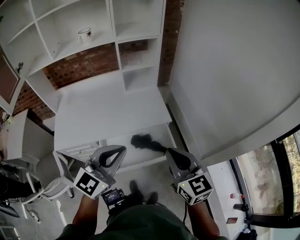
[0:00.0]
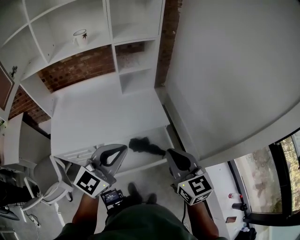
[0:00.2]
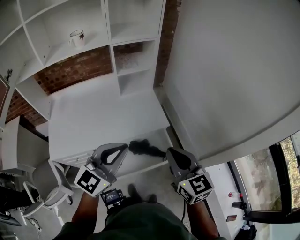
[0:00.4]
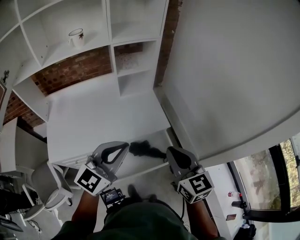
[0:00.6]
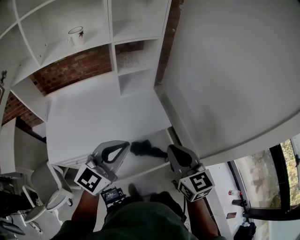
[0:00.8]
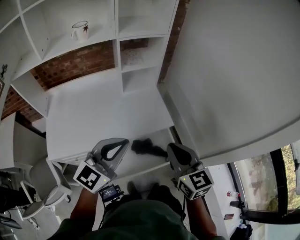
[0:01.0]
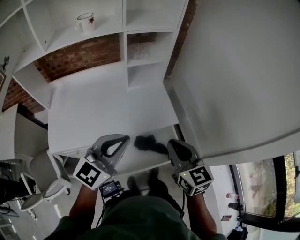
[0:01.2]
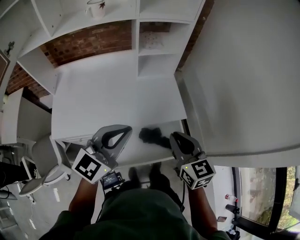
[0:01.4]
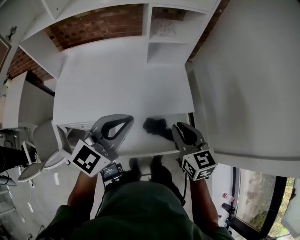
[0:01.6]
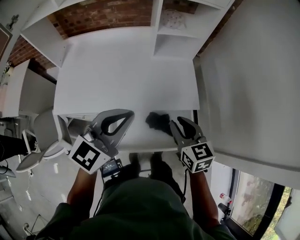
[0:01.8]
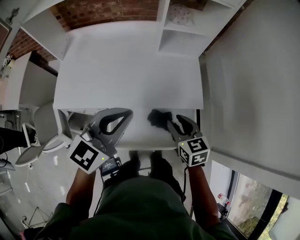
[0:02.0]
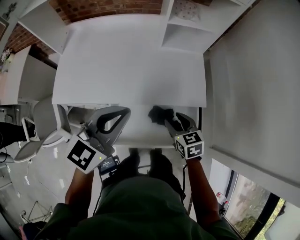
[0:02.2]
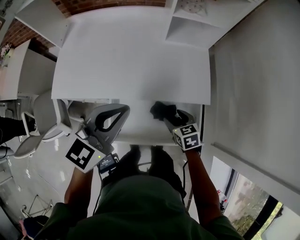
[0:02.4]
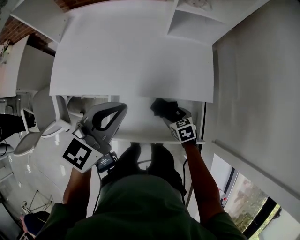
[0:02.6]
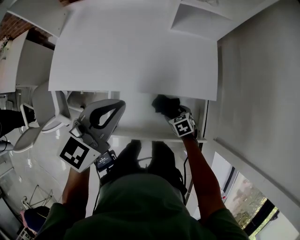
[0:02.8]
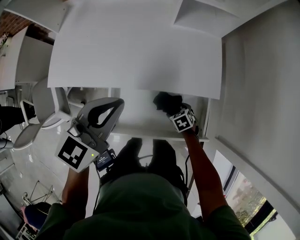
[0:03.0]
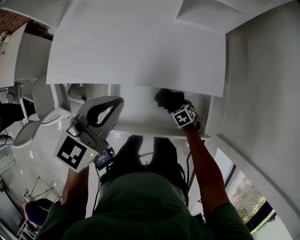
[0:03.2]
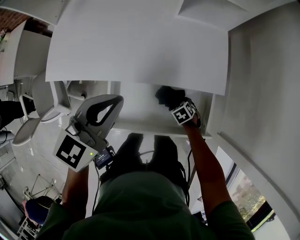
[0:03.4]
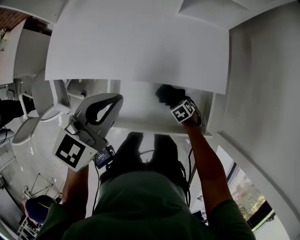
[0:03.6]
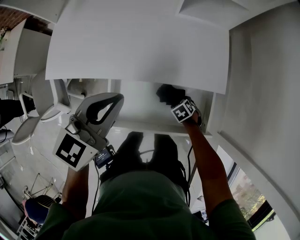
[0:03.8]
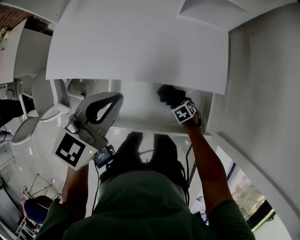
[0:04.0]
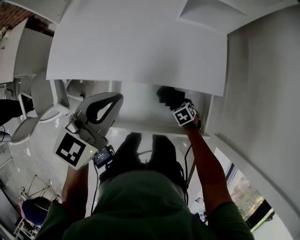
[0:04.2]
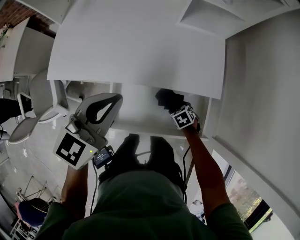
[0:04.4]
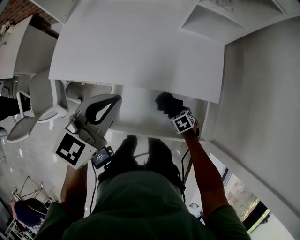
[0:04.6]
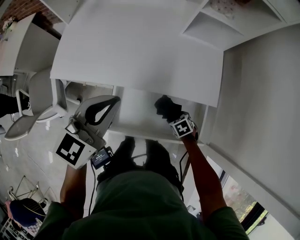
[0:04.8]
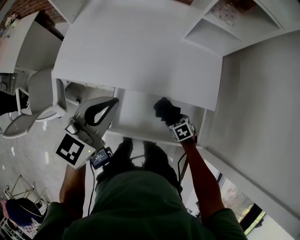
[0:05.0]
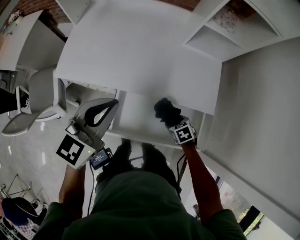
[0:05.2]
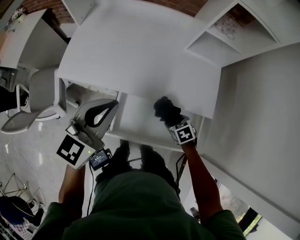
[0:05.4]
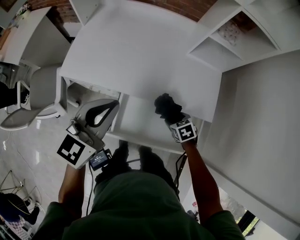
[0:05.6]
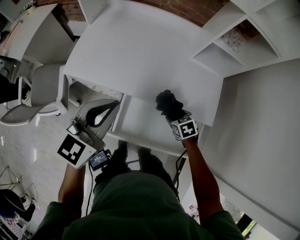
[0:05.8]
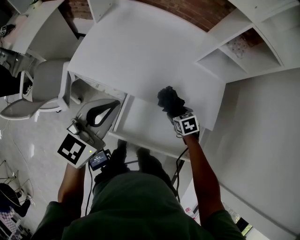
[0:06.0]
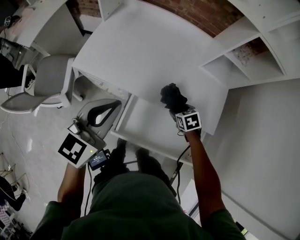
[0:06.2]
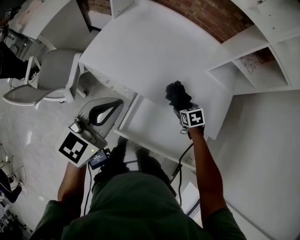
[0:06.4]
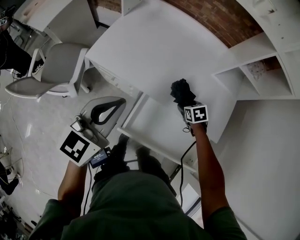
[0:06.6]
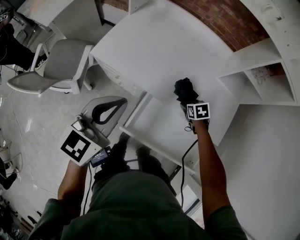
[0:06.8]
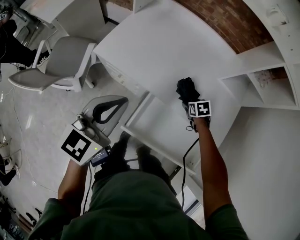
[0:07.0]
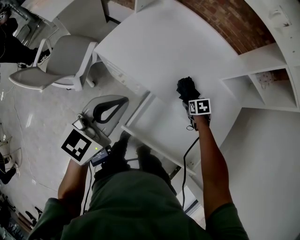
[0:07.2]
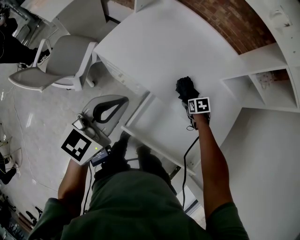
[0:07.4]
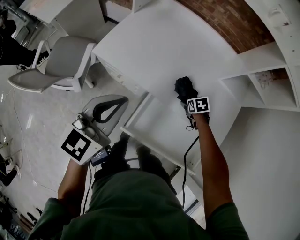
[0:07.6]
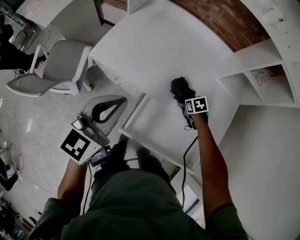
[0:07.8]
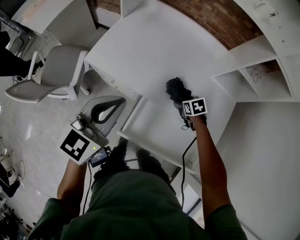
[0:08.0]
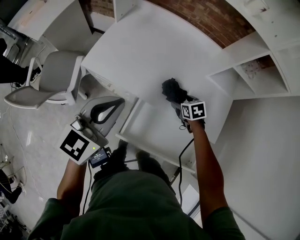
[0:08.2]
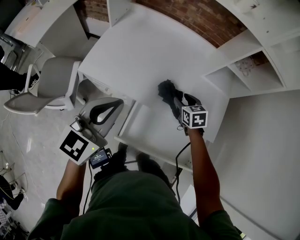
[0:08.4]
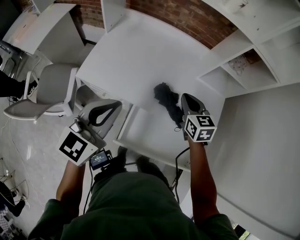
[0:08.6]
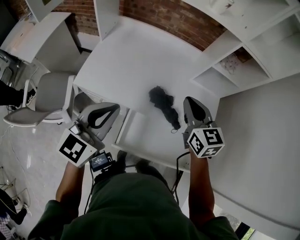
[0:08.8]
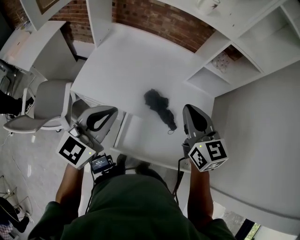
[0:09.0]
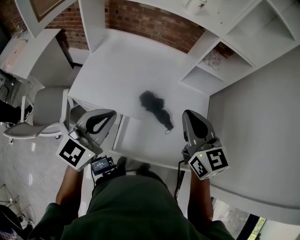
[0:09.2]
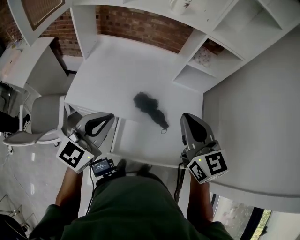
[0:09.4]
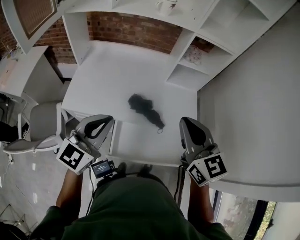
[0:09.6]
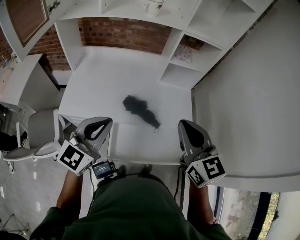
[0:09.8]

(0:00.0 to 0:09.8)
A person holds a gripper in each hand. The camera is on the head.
0:00.0 - 0:01.4: The left gripper is displaced forward and to the left by roughly 15 cm, while the right gripper moves forward, to the left and downward, approximately 20 cm.
0:01.4 - 0:02.8: The right gripper shifts about 40 cm downward, tips its fingers downward by about 50 degrees, and opens up, while the left gripper shifts some 15 cm downward, forward and to the left, and swivels some 20 degrees.
0:02.8 - 0:04.2: The right gripper travels downward by some 5 cm.
0:04.2 - 0:05.6: The left gripper ends up approximately 15 cm from where it was, while the right gripper travels upward by about 15 cm.
0:05.6 - 0:07.0: The right gripper moves forward and to the left, about 15 cm. Meanwhile the left gripper shifts some 10 cm to the left.
0:07.0 - 0:08.4: The right gripper goes some 10 cm upward, and rotates some 20 degrees; the left gripper ends up about 5 cm from where it was.
0:08.4 - 0:09.8: The right gripper heads upward and backward, covering approximately 40 cm, angles its fingers upward, by roughly 40 degrees, and closes its fingers. Meanwhile the left gripper travels to the right, upward and backward by some 15 cm.

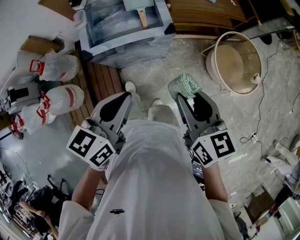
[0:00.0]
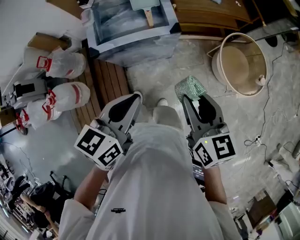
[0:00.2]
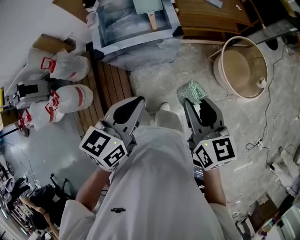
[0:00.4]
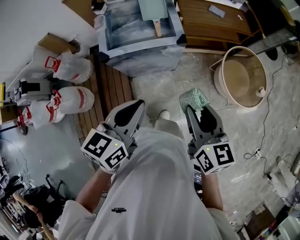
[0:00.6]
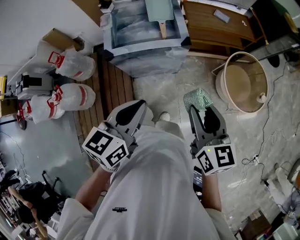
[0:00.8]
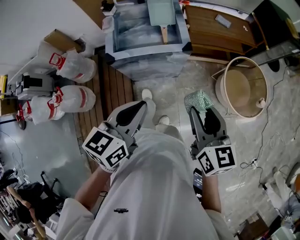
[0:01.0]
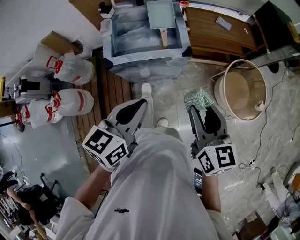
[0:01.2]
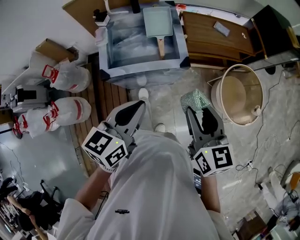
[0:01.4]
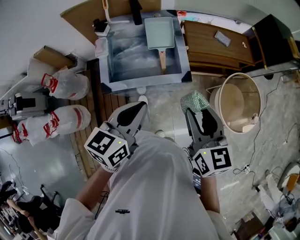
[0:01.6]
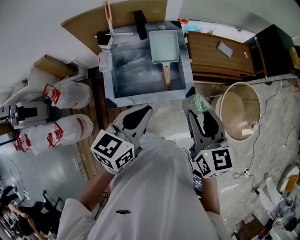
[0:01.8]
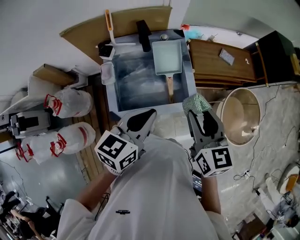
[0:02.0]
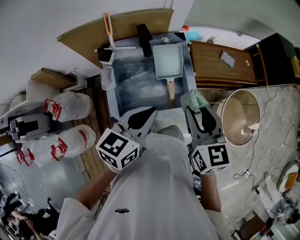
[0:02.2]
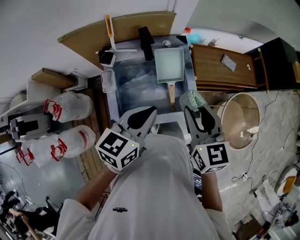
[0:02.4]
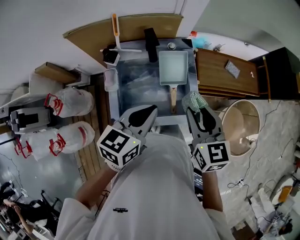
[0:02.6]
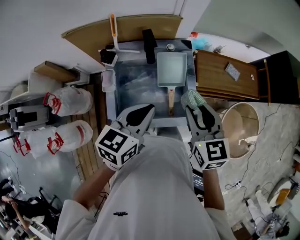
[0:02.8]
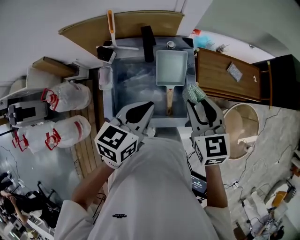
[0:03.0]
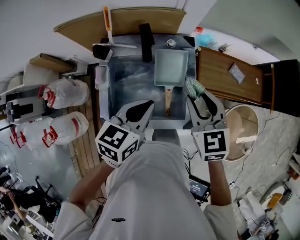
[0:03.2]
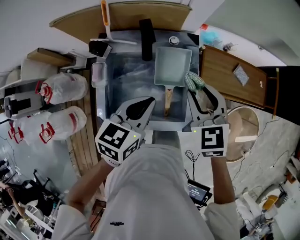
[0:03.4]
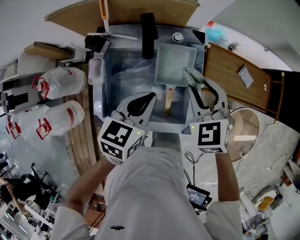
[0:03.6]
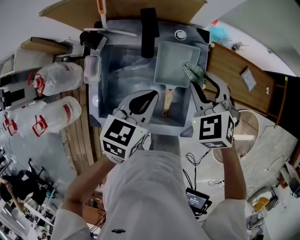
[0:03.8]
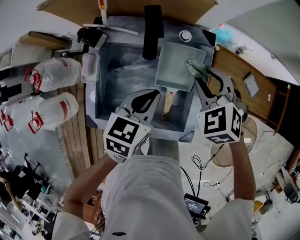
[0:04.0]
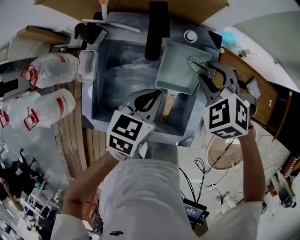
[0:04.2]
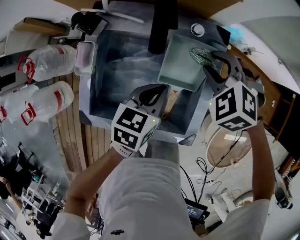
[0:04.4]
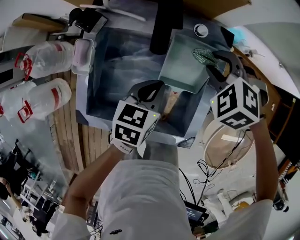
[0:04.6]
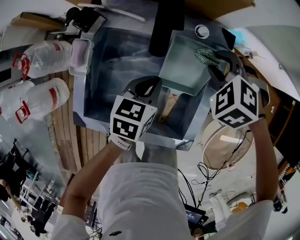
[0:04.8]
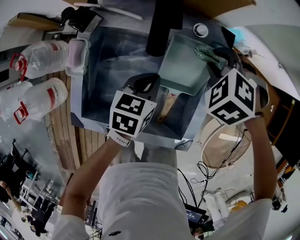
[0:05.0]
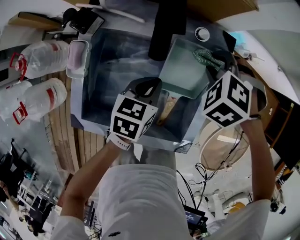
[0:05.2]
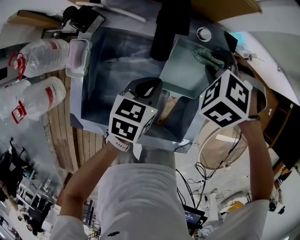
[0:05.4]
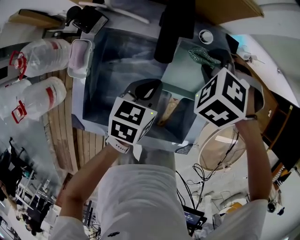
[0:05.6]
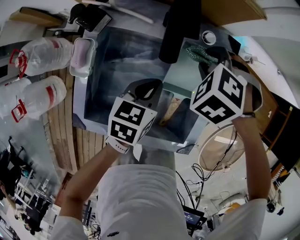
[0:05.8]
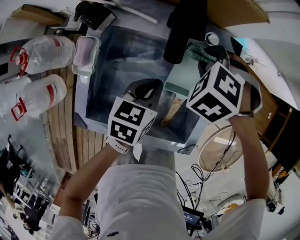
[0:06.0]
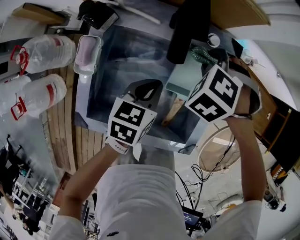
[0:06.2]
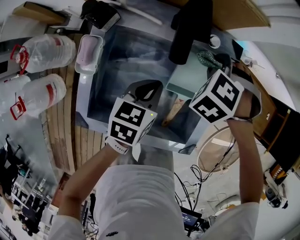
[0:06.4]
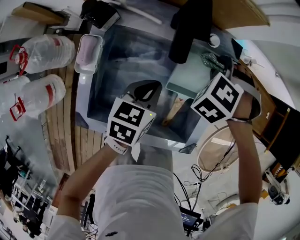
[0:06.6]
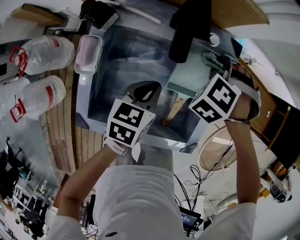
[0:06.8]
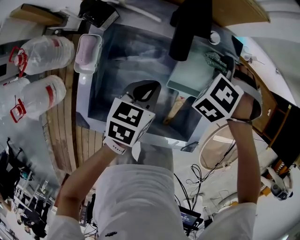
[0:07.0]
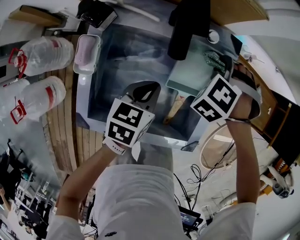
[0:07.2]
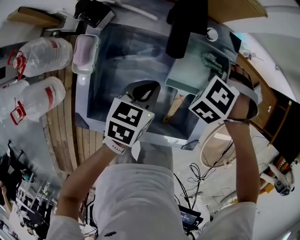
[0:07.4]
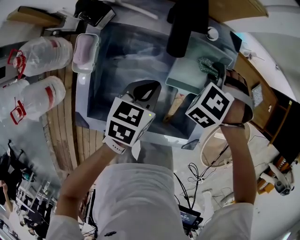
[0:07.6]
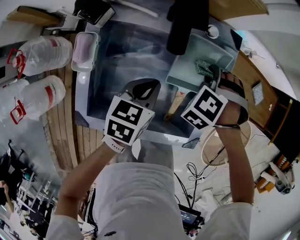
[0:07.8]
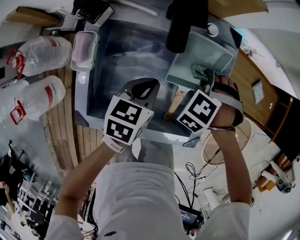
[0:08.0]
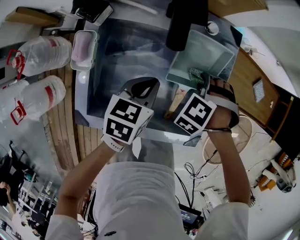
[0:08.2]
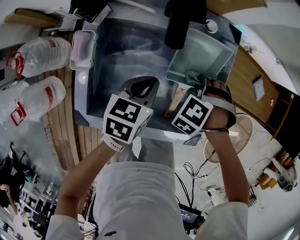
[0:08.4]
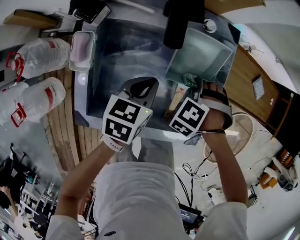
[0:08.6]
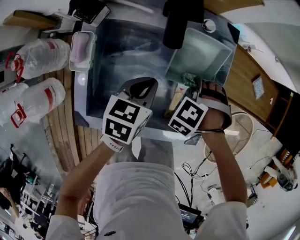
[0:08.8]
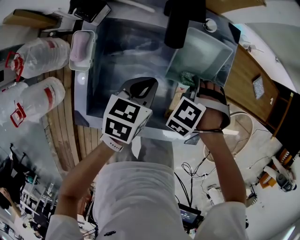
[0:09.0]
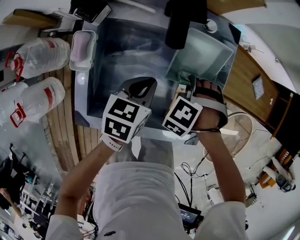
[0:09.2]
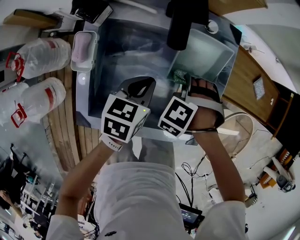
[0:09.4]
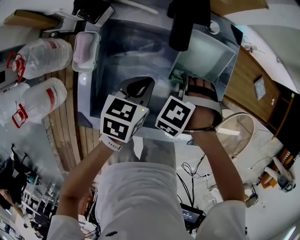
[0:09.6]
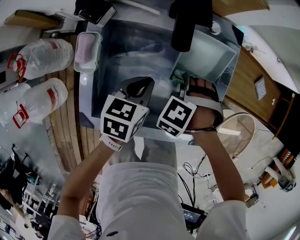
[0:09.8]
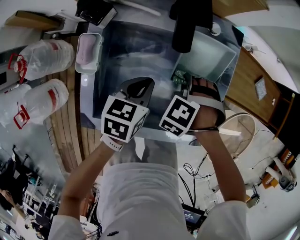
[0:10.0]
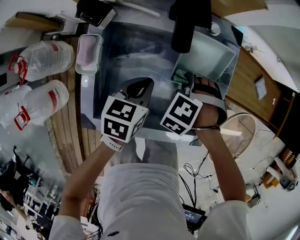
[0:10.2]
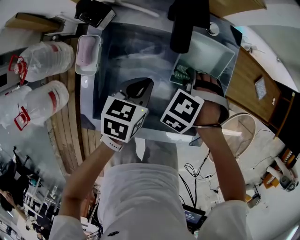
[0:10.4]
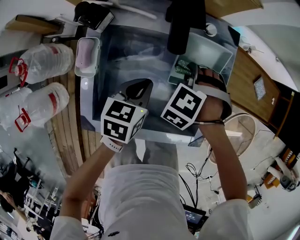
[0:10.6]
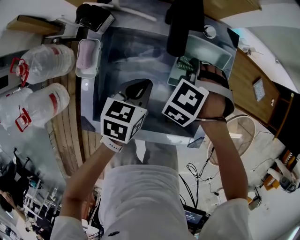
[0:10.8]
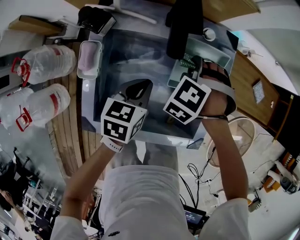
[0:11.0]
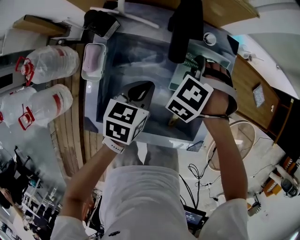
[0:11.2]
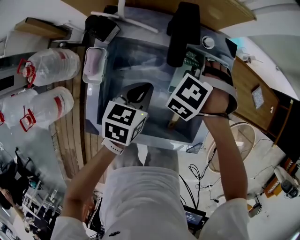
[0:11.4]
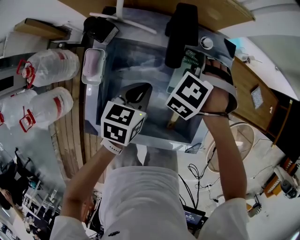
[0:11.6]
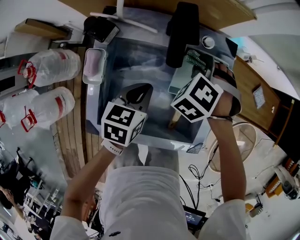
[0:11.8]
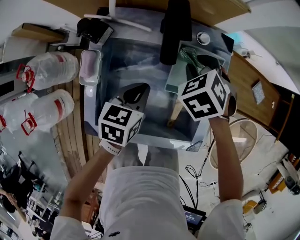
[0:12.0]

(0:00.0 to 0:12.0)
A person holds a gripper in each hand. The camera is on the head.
0:00.0 - 0:01.6: The left gripper travels forward and to the left by roughly 15 cm, while the right gripper travels forward by about 15 cm.
0:01.6 - 0:03.0: Both grippers travel together forward, roughly 25 cm.
0:03.0 - 0:04.4: The grippers both shift downward and forward by about 25 cm. The right gripper rotates around the line of its fingers by some 60 degrees, counterclockwise from behind.
0:04.4 - 0:06.0: The left gripper shifts by roughly 5 cm, while the right gripper moves some 10 cm.
0:06.0 - 0:07.6: The right gripper shifts by roughly 10 cm.
0:07.6 - 0:09.0: The right gripper is displaced backward by about 10 cm.
0:09.0 - 0:10.4: The right gripper goes about 5 cm to the left.
0:10.4 - 0:12.0: The right gripper ends up roughly 10 cm from where it was, and rotates roughly 40 degrees.

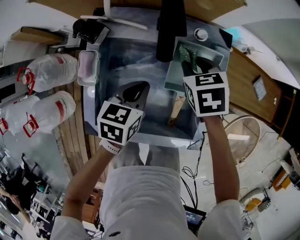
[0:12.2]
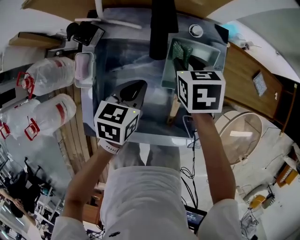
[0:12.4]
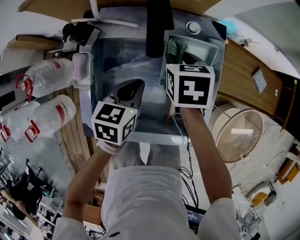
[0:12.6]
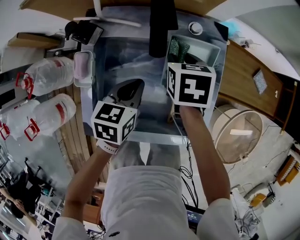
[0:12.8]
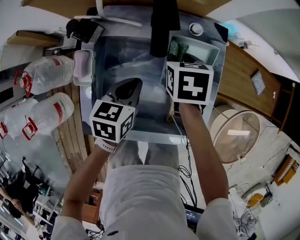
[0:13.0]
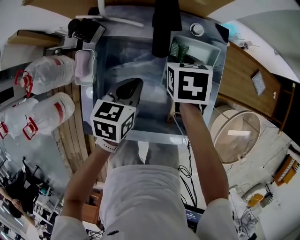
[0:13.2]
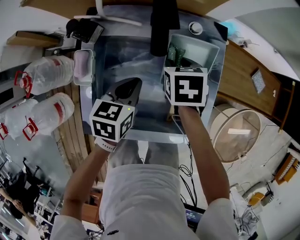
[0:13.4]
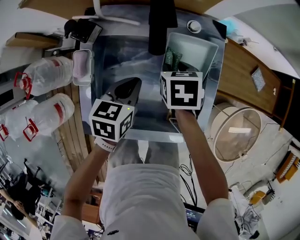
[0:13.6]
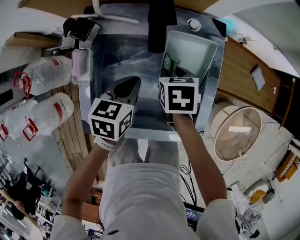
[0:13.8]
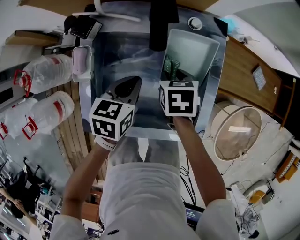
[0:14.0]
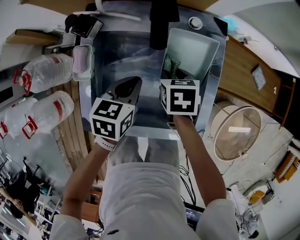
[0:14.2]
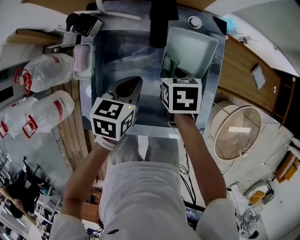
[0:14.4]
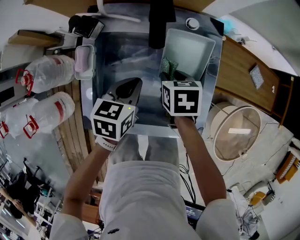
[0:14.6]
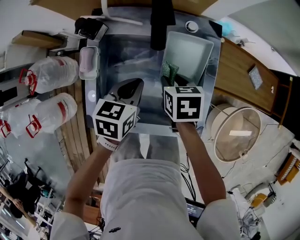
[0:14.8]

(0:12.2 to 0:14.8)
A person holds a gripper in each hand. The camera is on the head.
0:13.4 - 0:14.8: The right gripper shifts approximately 5 cm backward.
